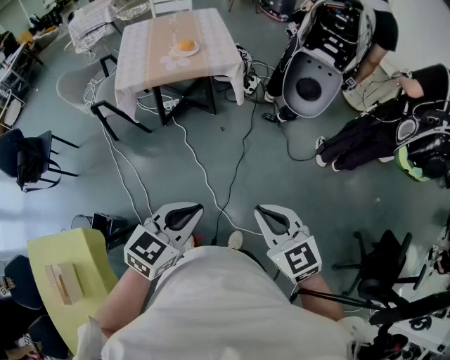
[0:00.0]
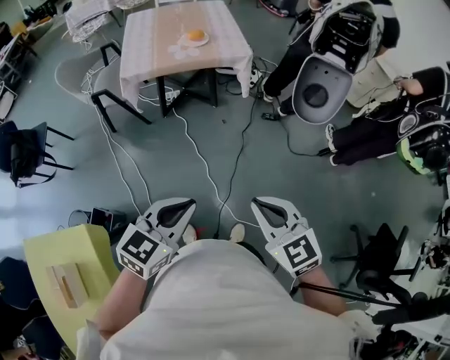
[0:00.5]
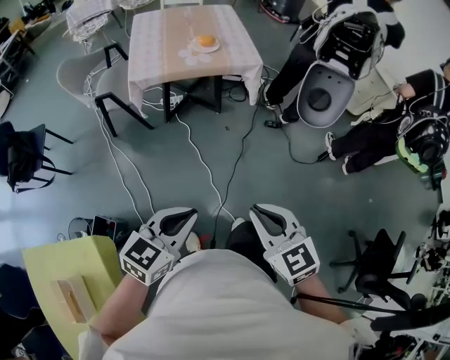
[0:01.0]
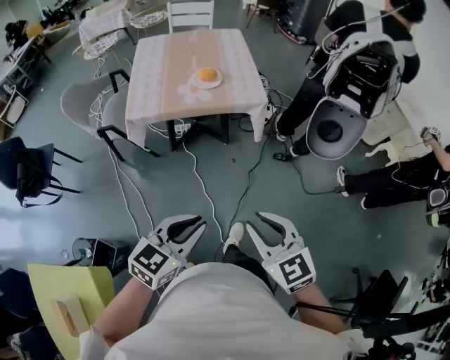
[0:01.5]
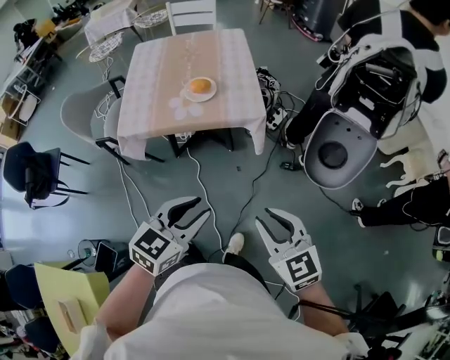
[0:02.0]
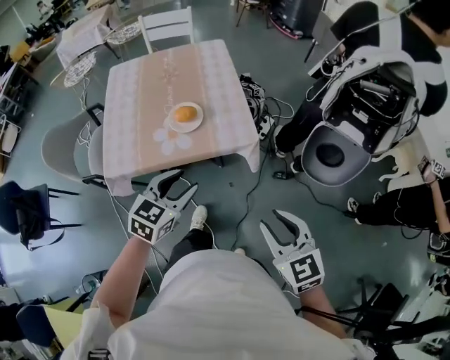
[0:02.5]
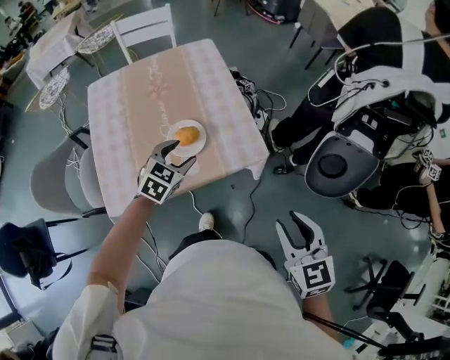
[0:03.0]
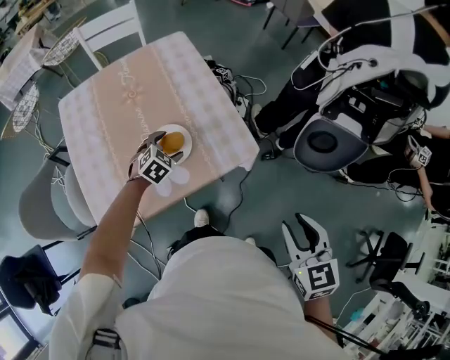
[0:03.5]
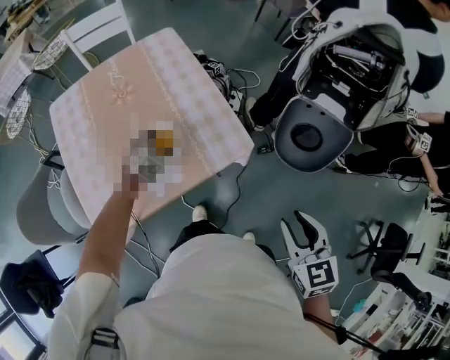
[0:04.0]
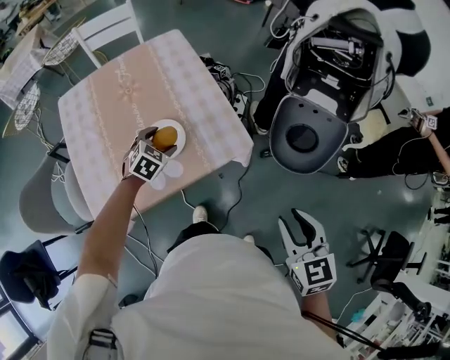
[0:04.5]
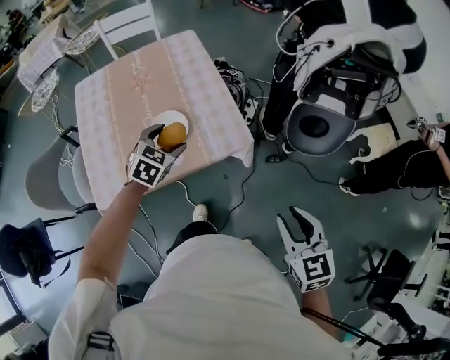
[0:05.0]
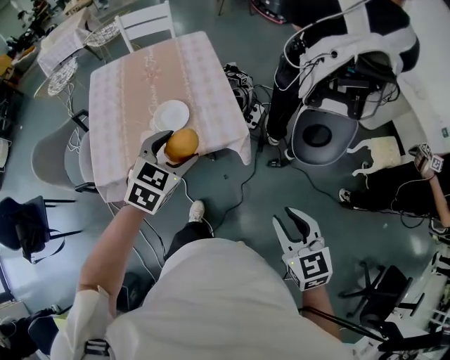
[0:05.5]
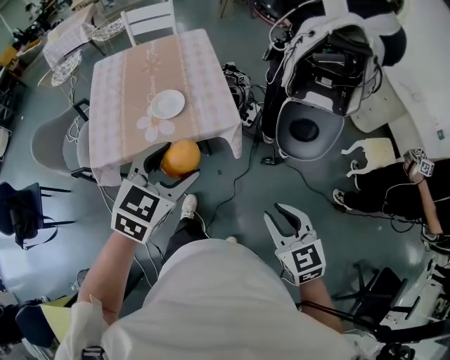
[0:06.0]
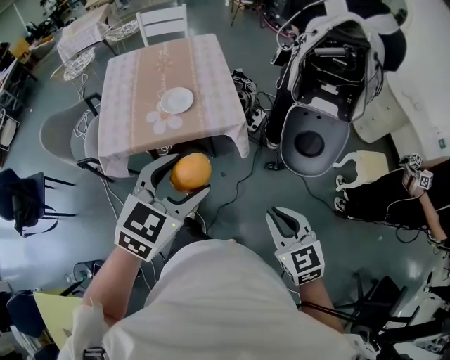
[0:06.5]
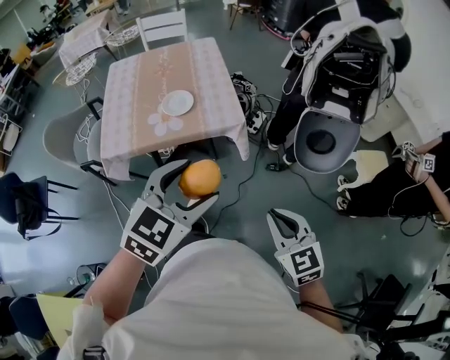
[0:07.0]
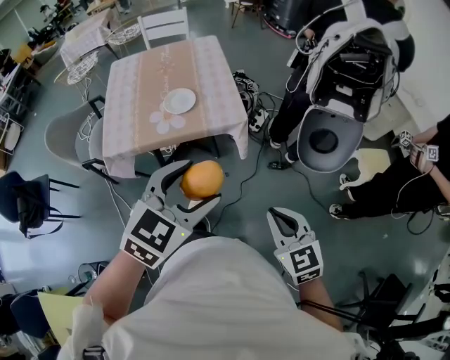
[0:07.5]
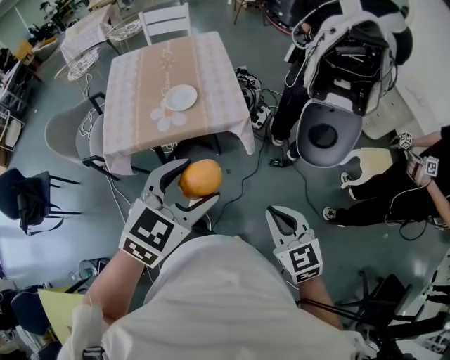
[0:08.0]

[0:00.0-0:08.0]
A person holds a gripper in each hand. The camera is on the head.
0:00.0 to 0:02.0: The two grippers go roughly 30 cm forward. The right gripper opens up.
0:02.0 to 0:04.0: The left gripper goes approximately 60 cm forward, downward and to the left, angles its fingers downward, by about 30 degrees, and opens up, while the right gripper travels forward by some 20 cm, and rotates about 40 degrees.
0:04.0 to 0:06.0: The left gripper is displaced upward, backward and to the right by approximately 50 cm, and swivels some 30 degrees, while the right gripper is displaced backward and to the right by some 15 cm, and changes its angle by some 30 degrees.
0:06.0 to 0:08.0: The left gripper shifts approximately 10 cm backward. Meanwhile the right gripper closes up.

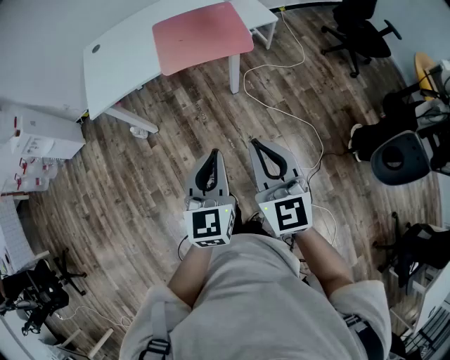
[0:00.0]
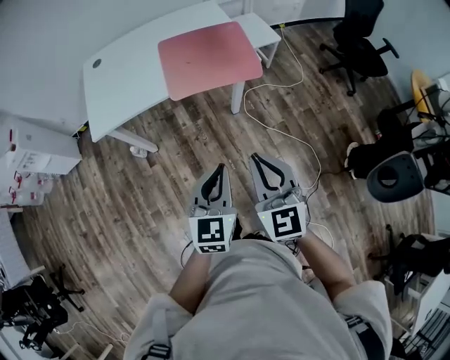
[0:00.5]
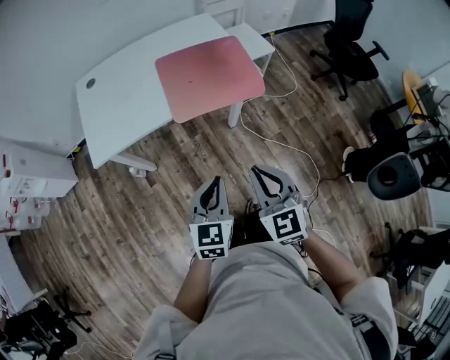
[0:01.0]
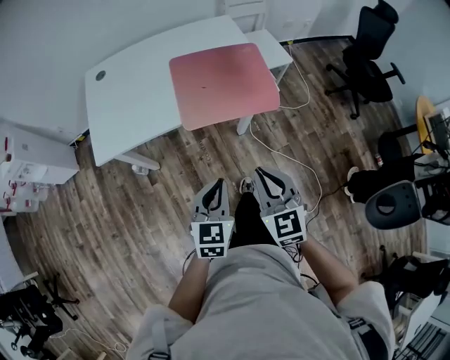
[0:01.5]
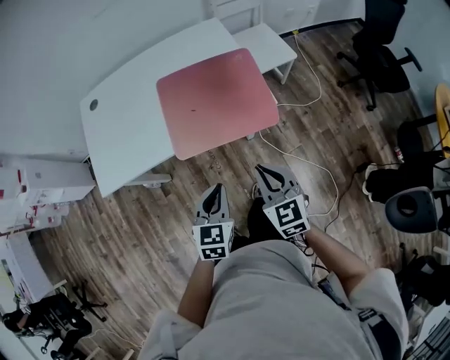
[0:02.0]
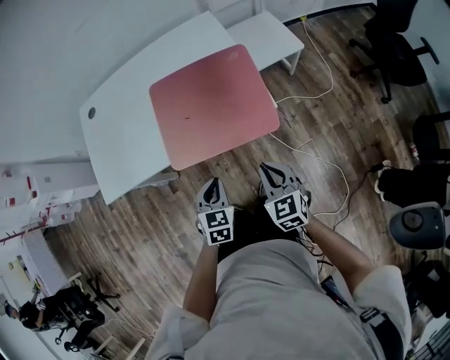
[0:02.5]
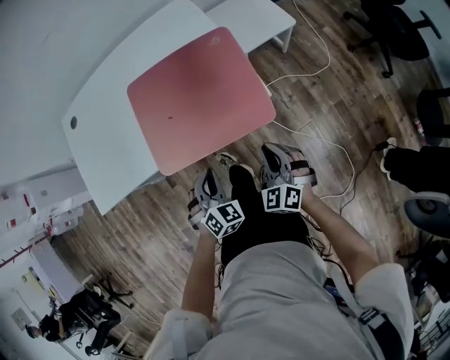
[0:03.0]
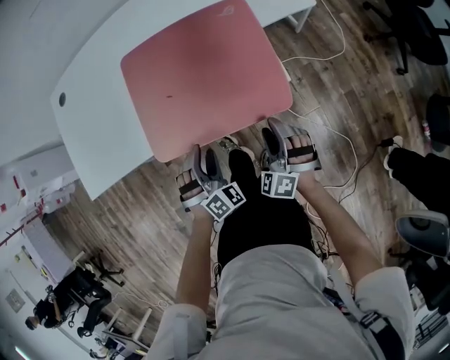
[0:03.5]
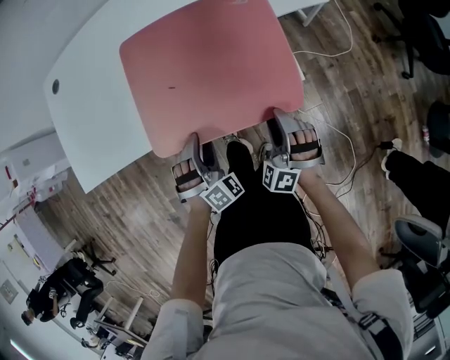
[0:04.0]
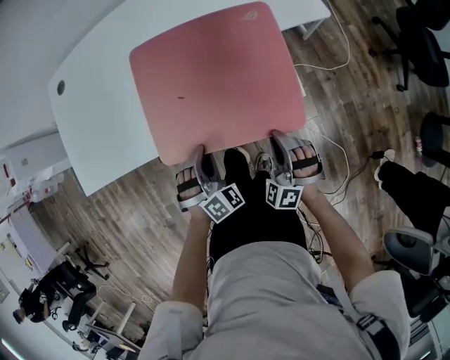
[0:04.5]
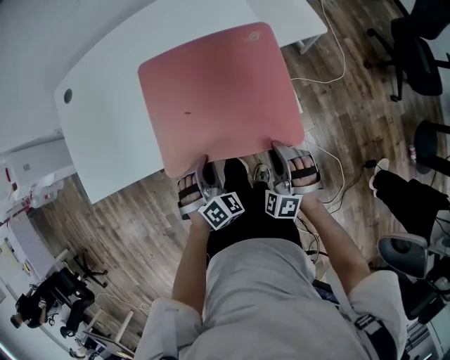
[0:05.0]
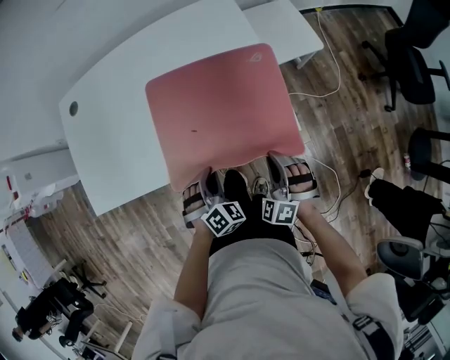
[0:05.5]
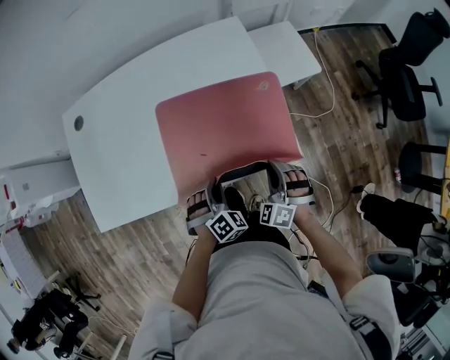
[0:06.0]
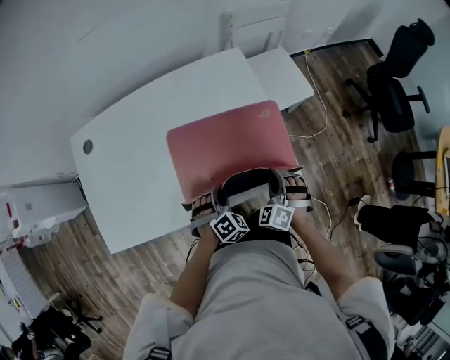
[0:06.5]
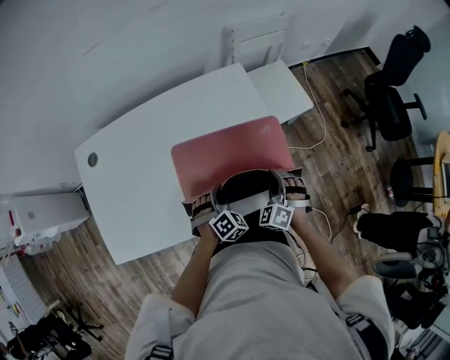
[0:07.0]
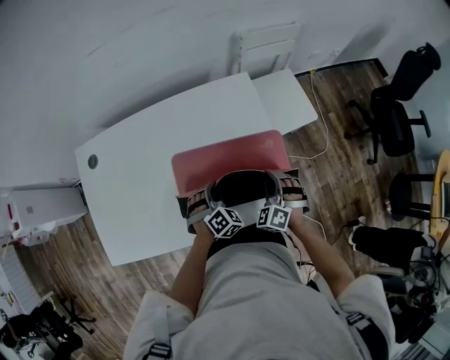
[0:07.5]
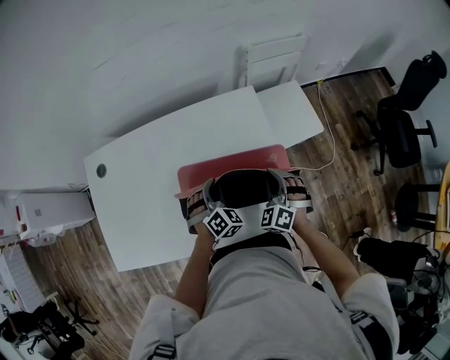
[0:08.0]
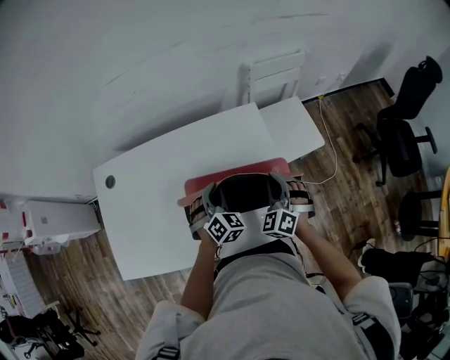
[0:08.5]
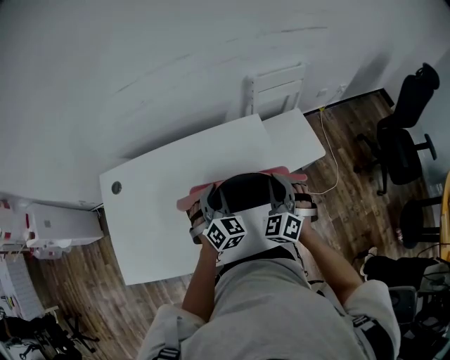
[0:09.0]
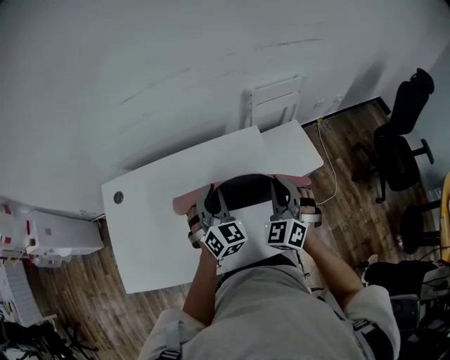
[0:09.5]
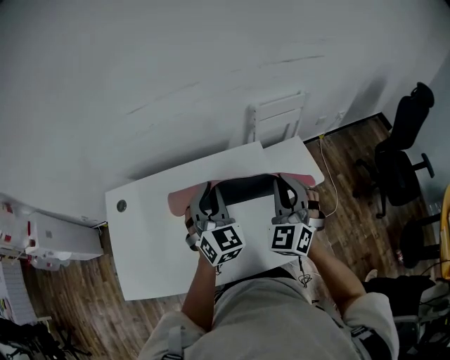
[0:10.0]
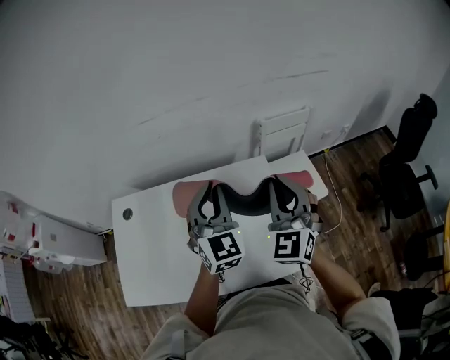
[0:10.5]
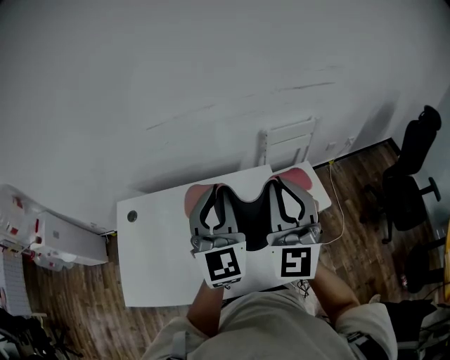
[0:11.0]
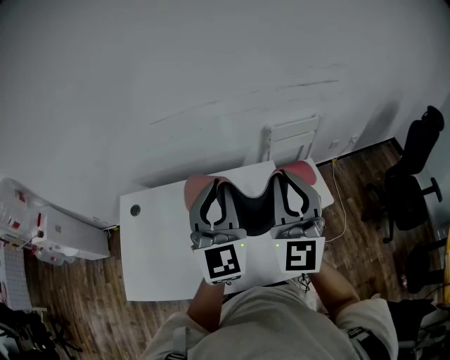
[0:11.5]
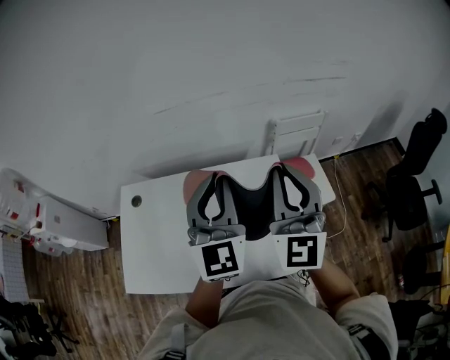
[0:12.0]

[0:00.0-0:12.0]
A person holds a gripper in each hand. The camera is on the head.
0:00.0 to 0:02.0: The grippers both shift forward and downward by about 30 cm. The left gripper rotates roughly 20 degrees.
0:02.0 to 0:04.0: The grippers both shift downward and forward by roughly 25 cm. The right gripper twists approximately 60 degrees counterclockwise, seen from behind, and opens up; the left gripper twists roughly 60 degrees clockwise, seen from behind, and opens its fingers.
0:04.0 to 0:06.0: The left gripper heads forward, covering some 5 cm, and closes up, while the right gripper heads forward and upward, covering about 10 cm, and closes its fingers.
0:06.0 to 0:08.0: Both grippers move forward, some 20 cm.
0:08.0 to 0:10.0: The two grippers go roughly 25 cm upward. The right gripper swivels roughly 30 degrees, while the left gripper swivels about 40 degrees.
0:10.0 to 0:12.0: The left gripper travels upward by approximately 15 cm, and rotates roughly 30 degrees, while the right gripper goes about 15 cm upward and to the left, and turns by approximately 40 degrees.

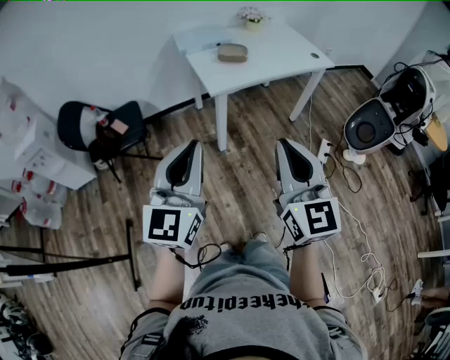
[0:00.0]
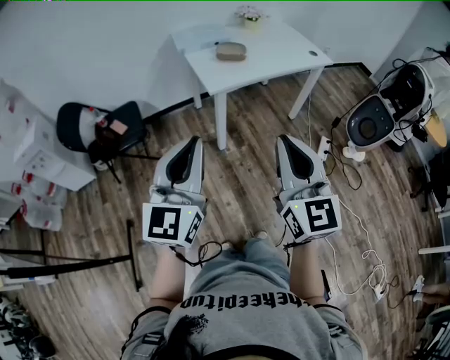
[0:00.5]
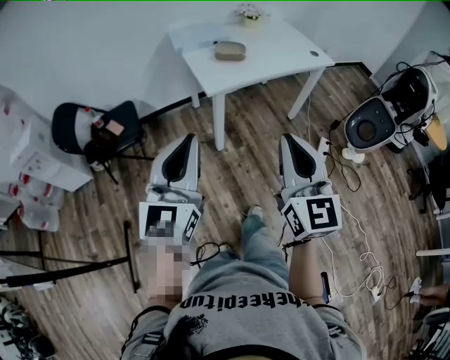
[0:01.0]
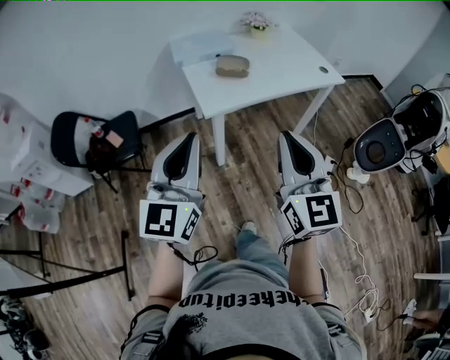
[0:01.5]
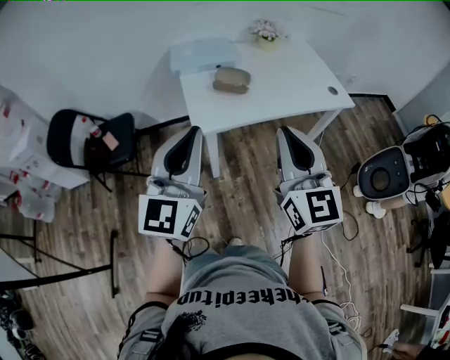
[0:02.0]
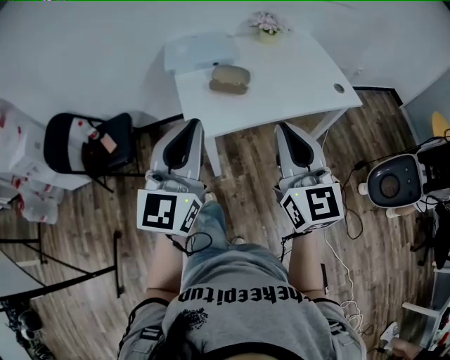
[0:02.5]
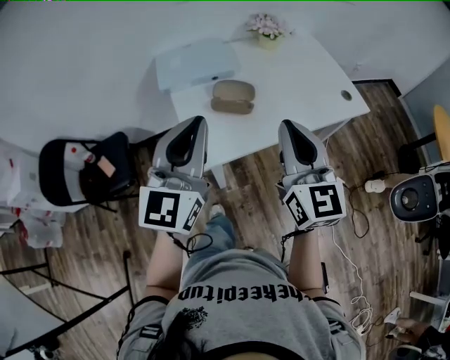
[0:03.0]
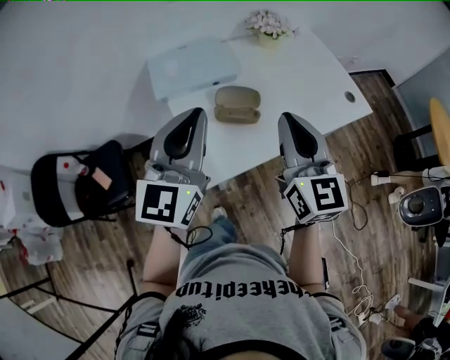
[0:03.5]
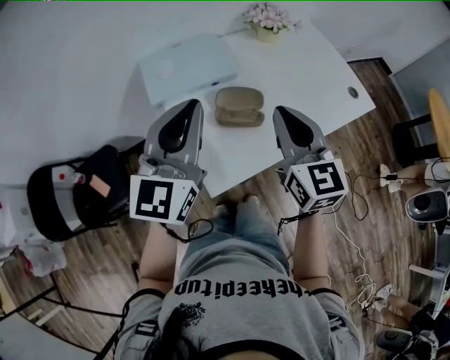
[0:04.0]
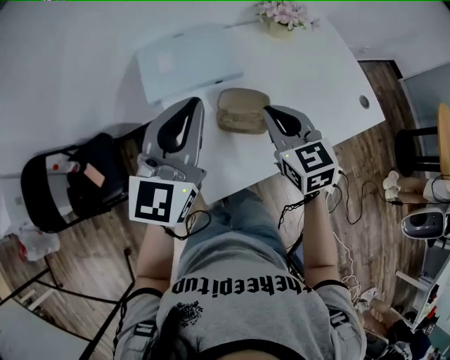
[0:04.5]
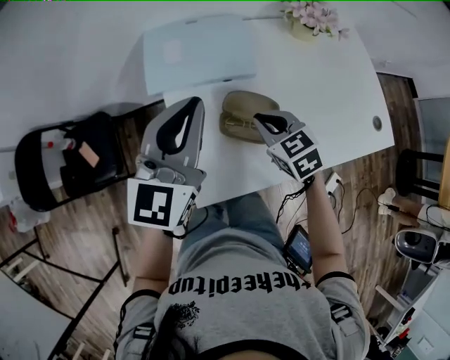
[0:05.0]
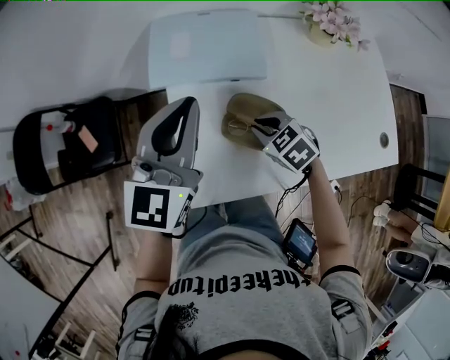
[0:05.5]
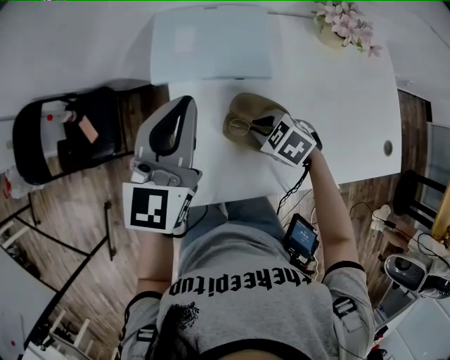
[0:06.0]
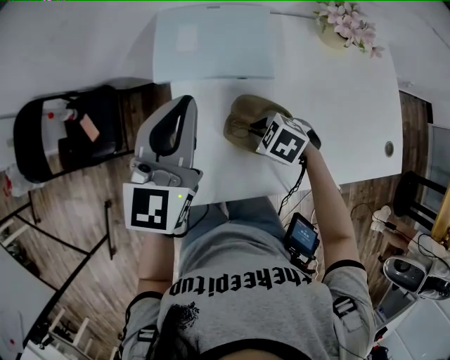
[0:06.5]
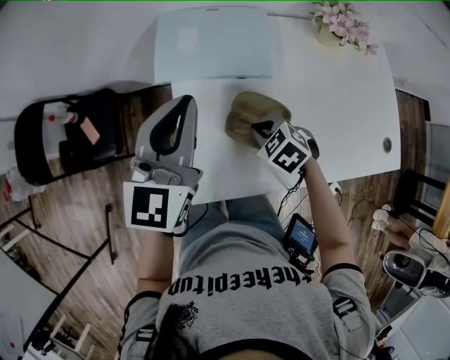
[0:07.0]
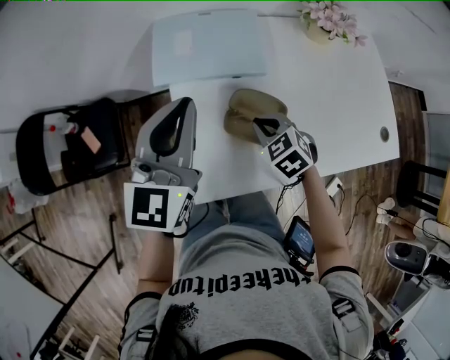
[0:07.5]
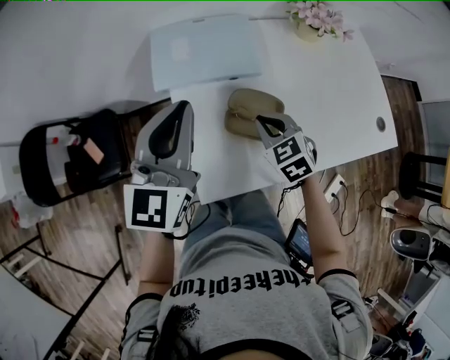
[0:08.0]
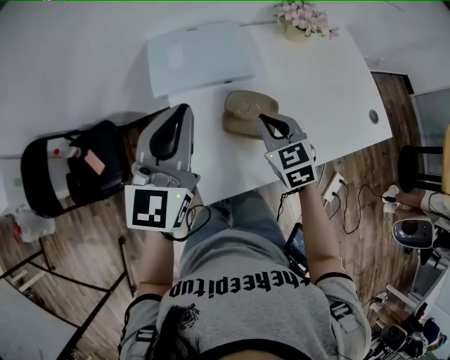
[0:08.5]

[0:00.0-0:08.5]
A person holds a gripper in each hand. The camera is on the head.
0:00.0 to 0:02.0: The left gripper shifts some 30 cm forward and to the right. Meanwhile the right gripper moves forward, some 30 cm.
0:02.0 to 0:04.0: The grippers both shift forward by some 35 cm.
0:04.0 to 0:06.5: The right gripper is displaced downward by approximately 30 cm, and angles its fingers downward, by some 60 degrees. The left gripper ends up some 15 cm from where it was, and swivels about 30 degrees.
0:06.5 to 0:08.5: The right gripper shifts roughly 10 cm upward, and tips its fingers upward by roughly 30 degrees. Meanwhile the left gripper moves about 5 cm.
